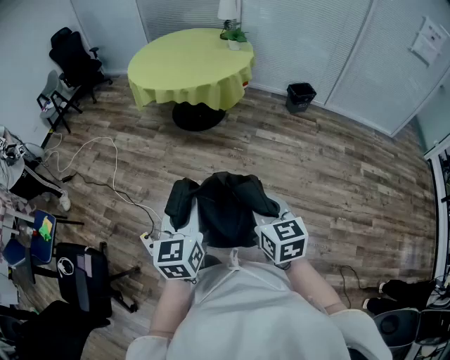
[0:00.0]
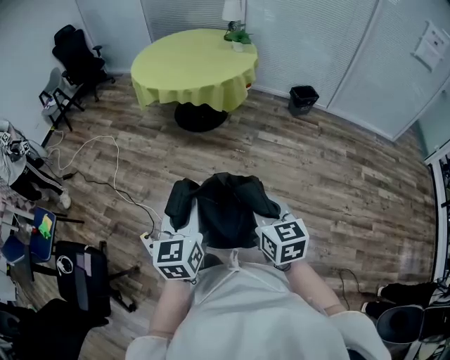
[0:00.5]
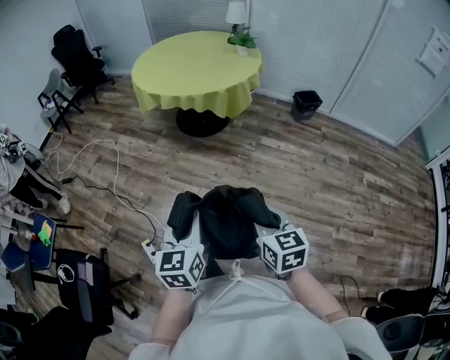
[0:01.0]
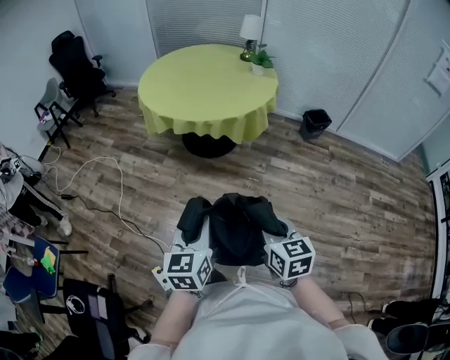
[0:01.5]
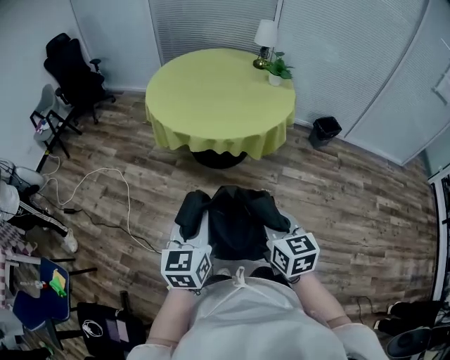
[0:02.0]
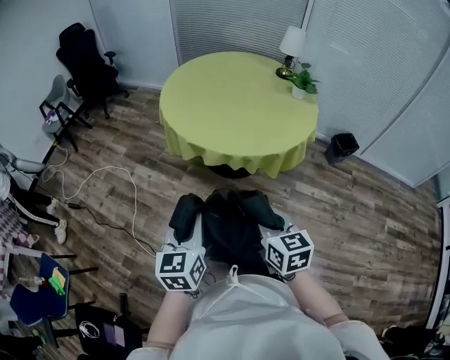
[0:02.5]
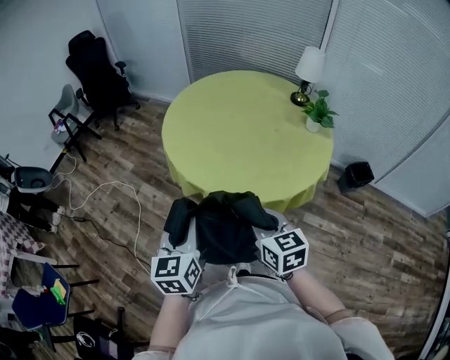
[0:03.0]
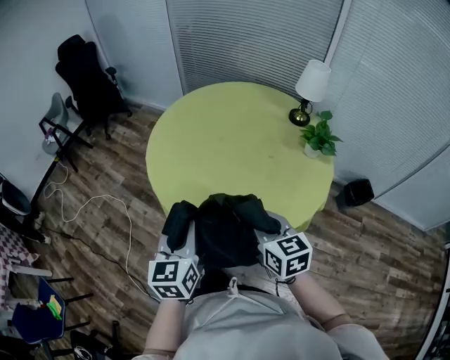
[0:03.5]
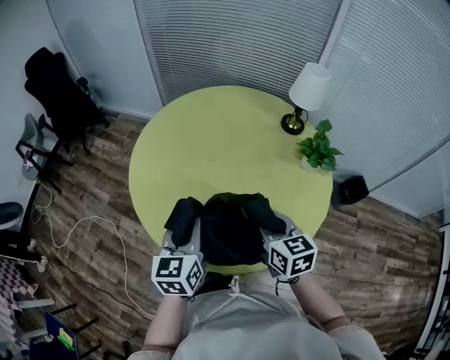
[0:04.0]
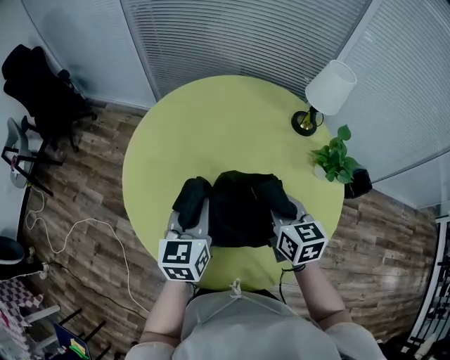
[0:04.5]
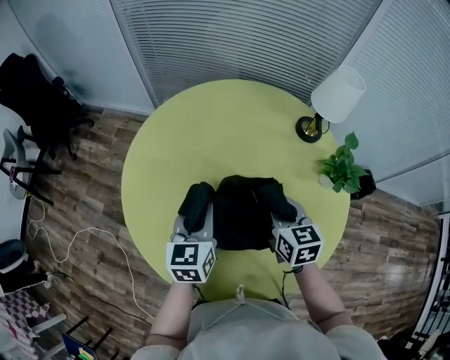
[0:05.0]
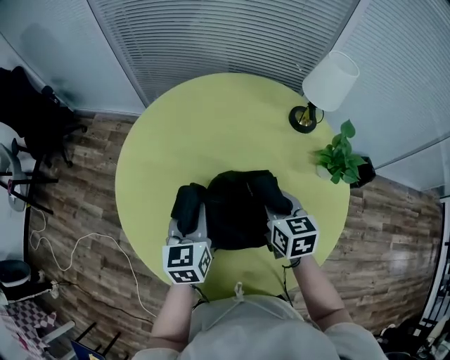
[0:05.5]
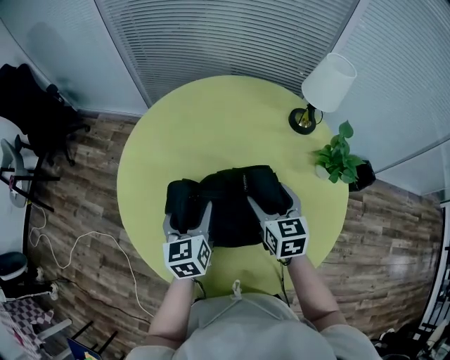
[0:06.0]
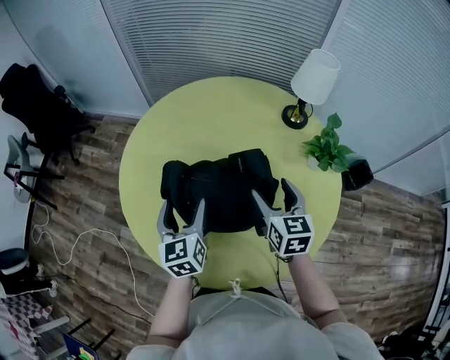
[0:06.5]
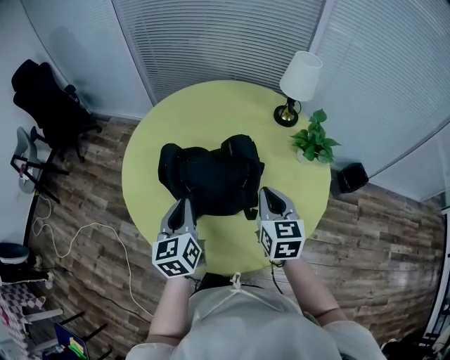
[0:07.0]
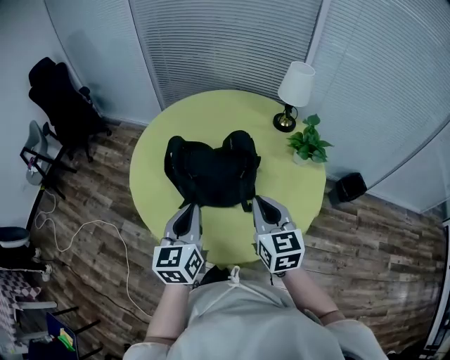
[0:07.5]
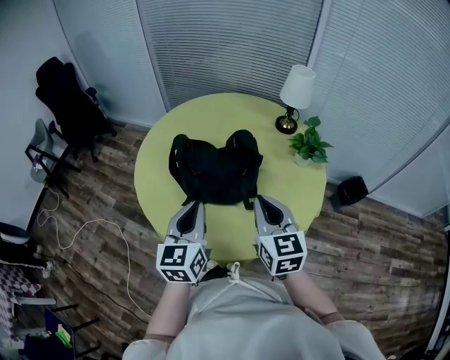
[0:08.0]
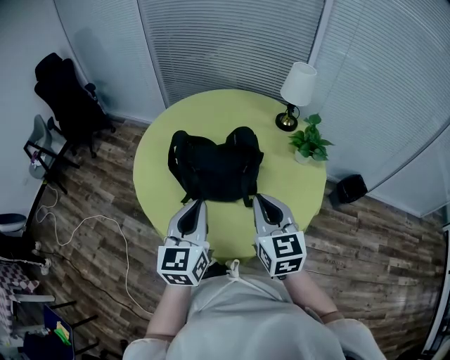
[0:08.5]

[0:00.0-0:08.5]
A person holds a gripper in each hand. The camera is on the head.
0:00.0 to 0:02.0: Both grippers are carried forward and to the left, about 40 cm.
0:02.0 to 0:04.0: The pair of grippers is taken forward, approximately 70 cm.
0:04.0 to 0:06.5: The left gripper shifts some 20 cm forward and downward, and opens its fingers, while the right gripper is displaced forward by approximately 15 cm, and opens up.
0:06.5 to 0:08.5: The two grippers go roughly 25 cm backward and upward. The right gripper closes its fingers. The left gripper closes.

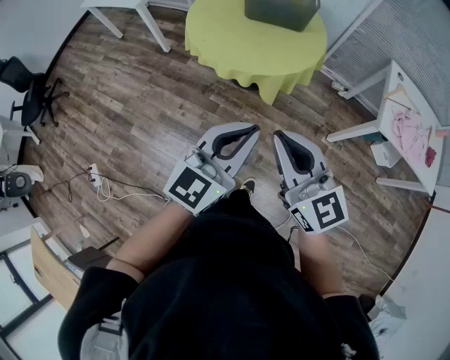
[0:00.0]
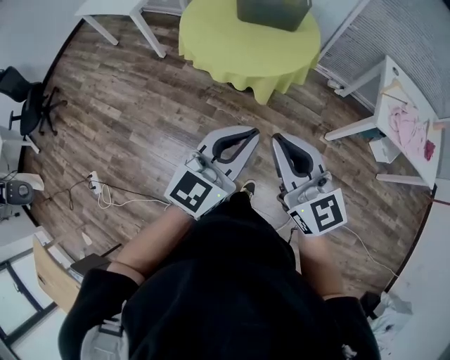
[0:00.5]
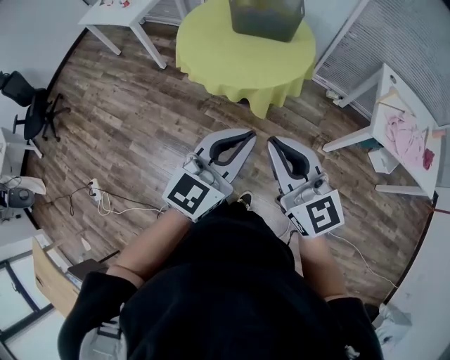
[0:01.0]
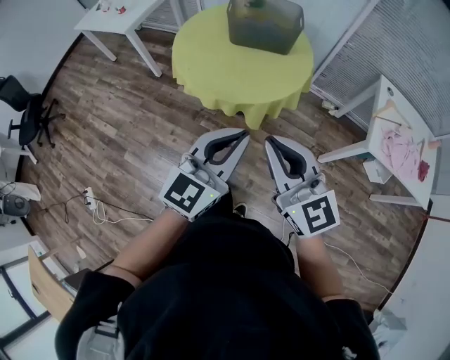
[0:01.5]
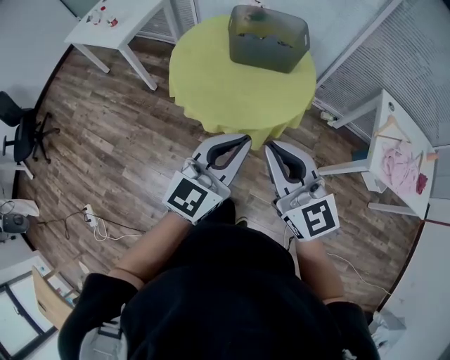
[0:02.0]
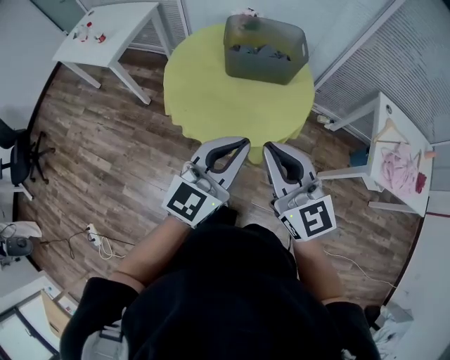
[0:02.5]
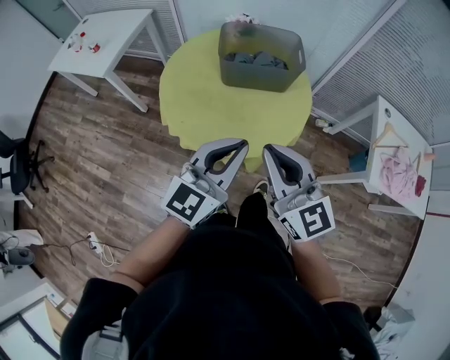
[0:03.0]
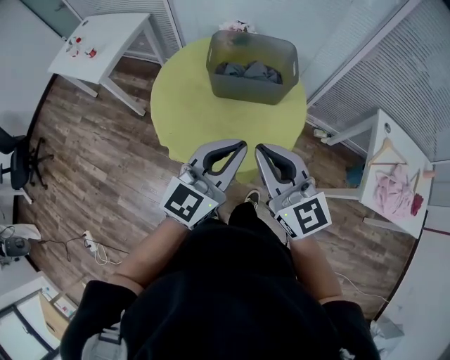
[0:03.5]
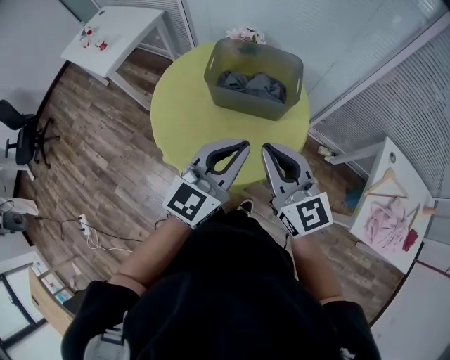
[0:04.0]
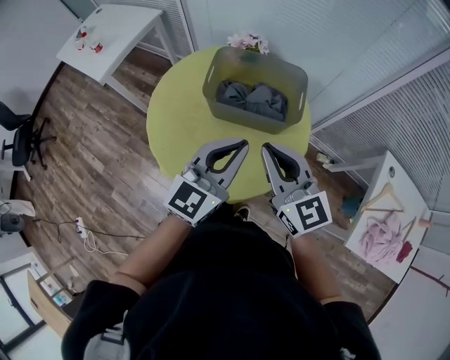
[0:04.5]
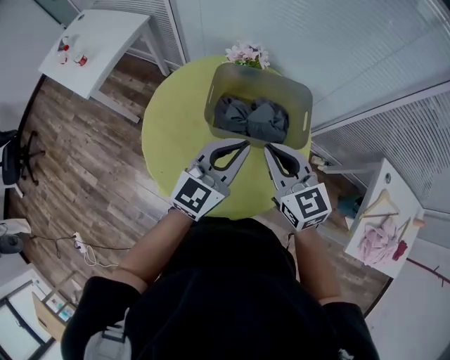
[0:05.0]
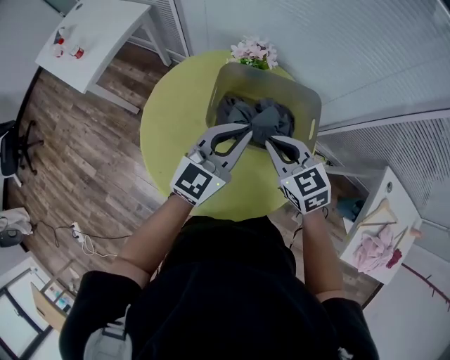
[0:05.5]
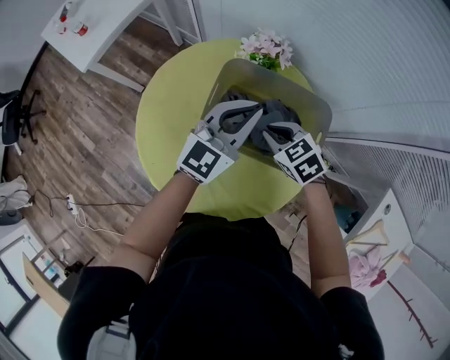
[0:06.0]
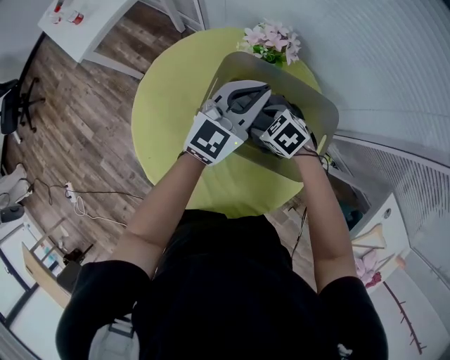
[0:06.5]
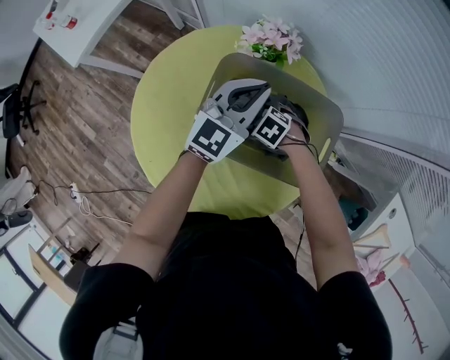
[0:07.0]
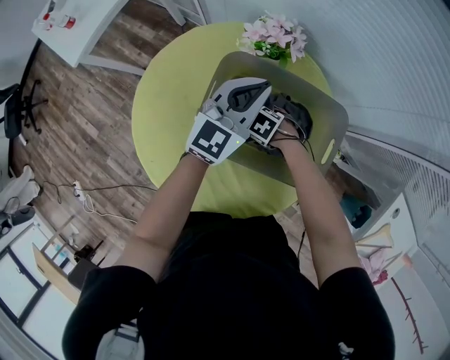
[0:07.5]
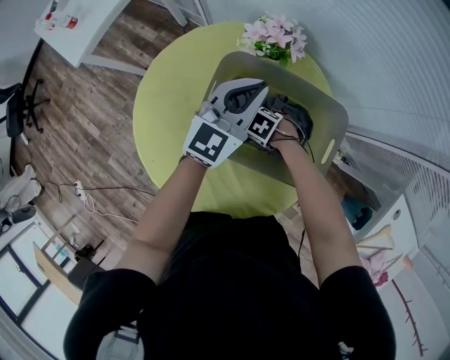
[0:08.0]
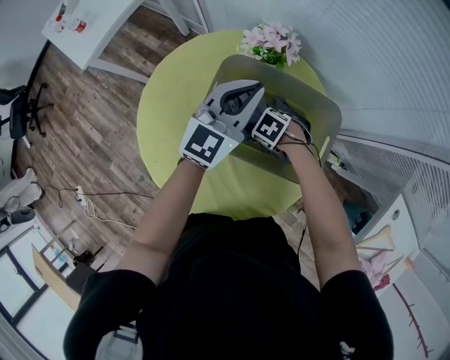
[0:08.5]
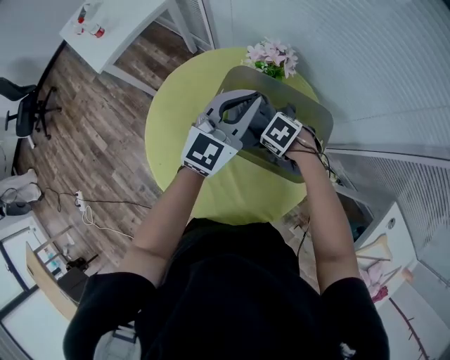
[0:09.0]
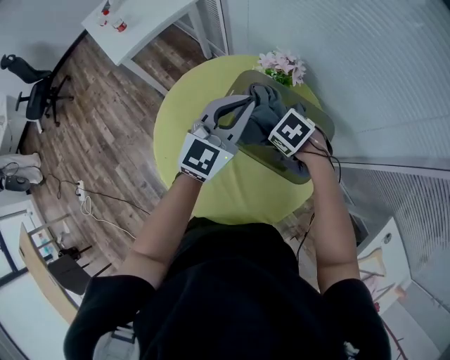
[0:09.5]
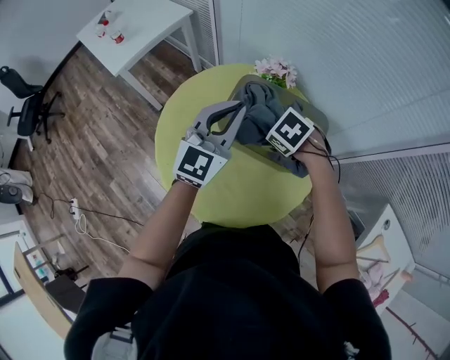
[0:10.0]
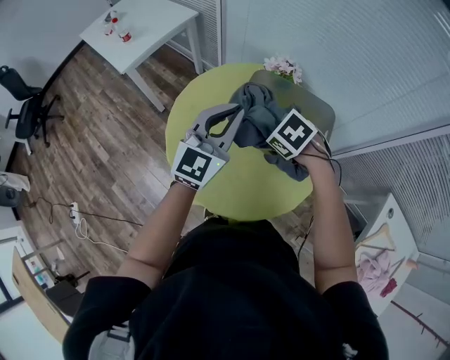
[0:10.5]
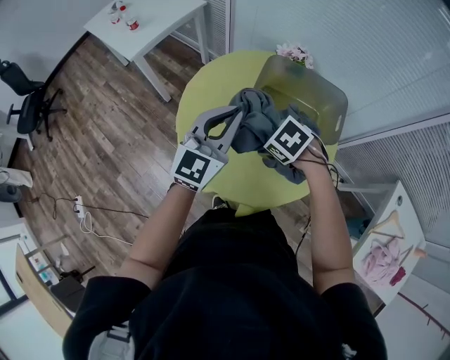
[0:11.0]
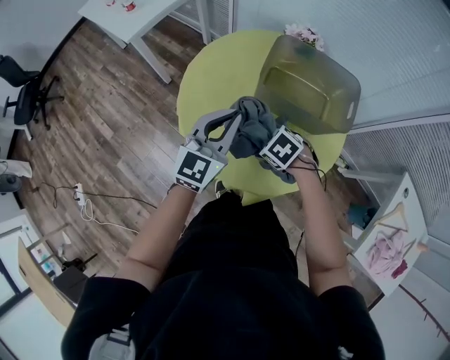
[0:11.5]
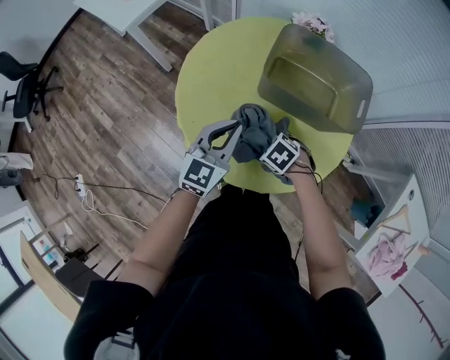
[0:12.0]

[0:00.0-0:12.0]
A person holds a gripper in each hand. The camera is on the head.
0:00.0 to 0:02.0: The two grippers go about 20 cm forward.
0:02.0 to 0:04.0: Both grippers travel together forward, roughly 25 cm.
0:04.0 to 0:06.0: The right gripper shifts approximately 40 cm forward and downward, and tips its fingers downward by some 50 degrees, while the left gripper shifts about 35 cm forward.
0:06.0 to 0:08.0: The right gripper goes some 25 cm downward, rotates approximately 40 degrees, and opens up, while the left gripper changes place by some 10 cm.
0:08.0 to 0:10.0: The right gripper shifts roughly 30 cm upward, while the left gripper is displaced upward by approximately 15 cm.
0:10.0 to 0:12.0: Both grippers move downward, to the left and backward, about 30 cm.

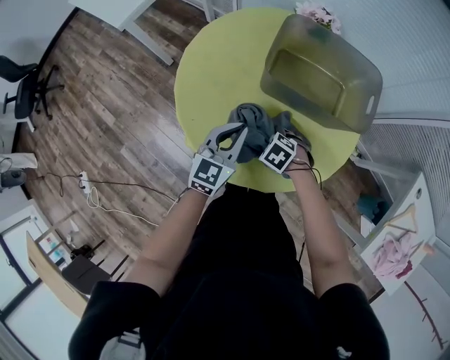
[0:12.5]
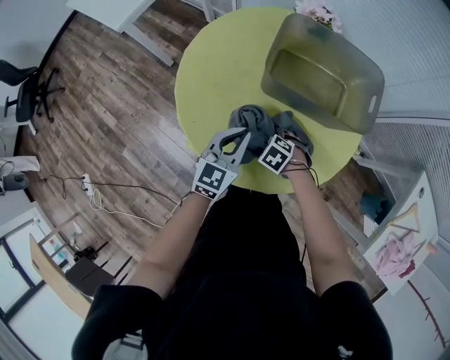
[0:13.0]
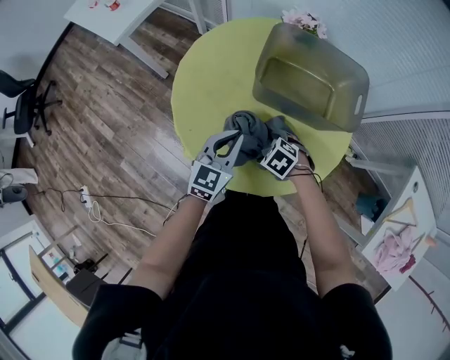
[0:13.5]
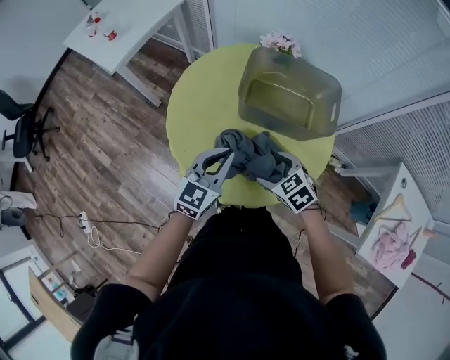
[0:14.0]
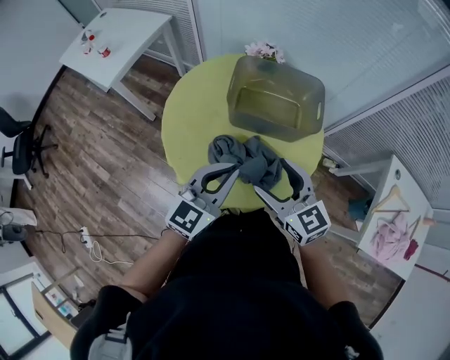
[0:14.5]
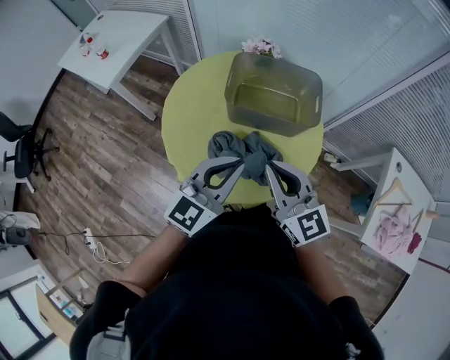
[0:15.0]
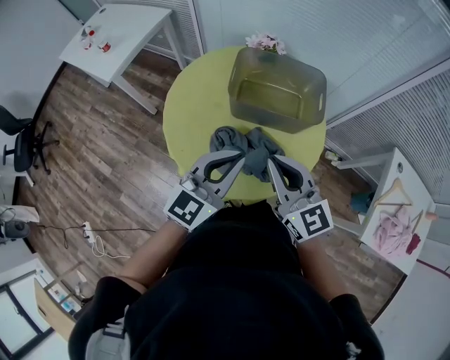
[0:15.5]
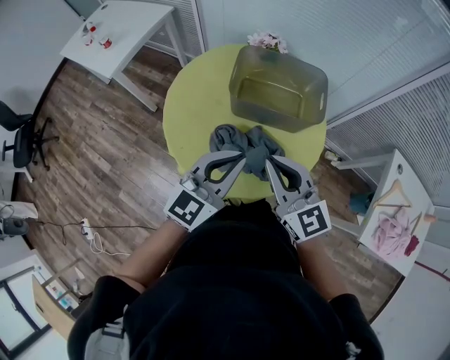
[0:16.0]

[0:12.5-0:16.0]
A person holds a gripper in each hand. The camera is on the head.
0:12.5 to 0:14.5: The right gripper heads upward, covering some 35 cm, and tips its fingers upward by approximately 60 degrees. The left gripper shifts roughly 20 cm upward.
0:14.5 to 0:16.0: The right gripper closes its fingers.

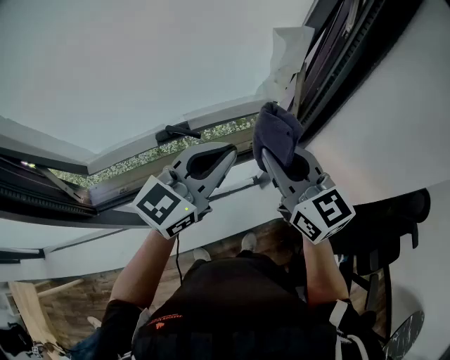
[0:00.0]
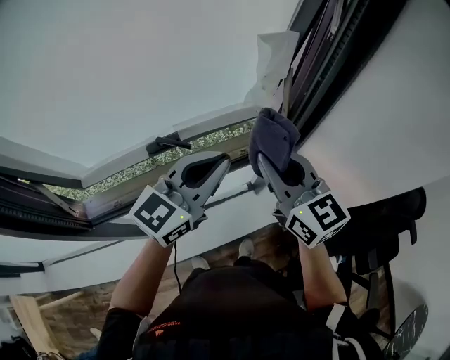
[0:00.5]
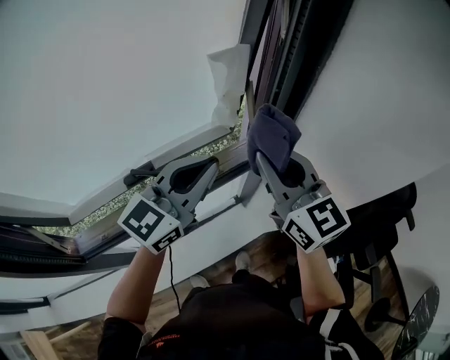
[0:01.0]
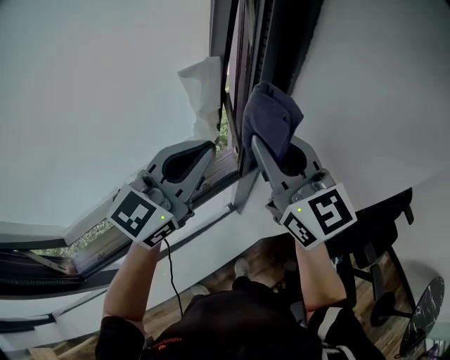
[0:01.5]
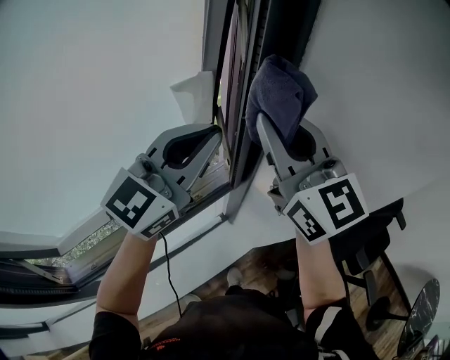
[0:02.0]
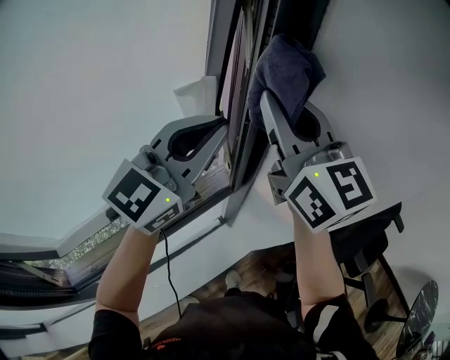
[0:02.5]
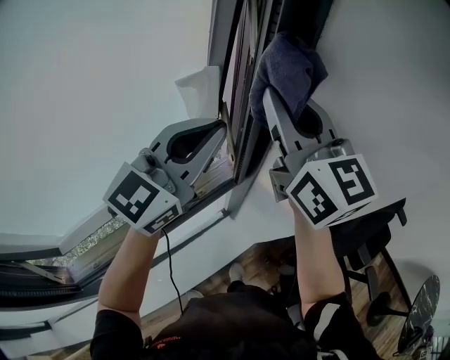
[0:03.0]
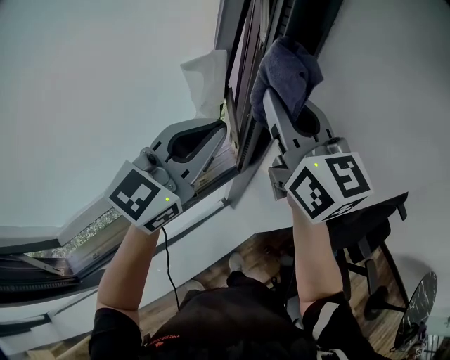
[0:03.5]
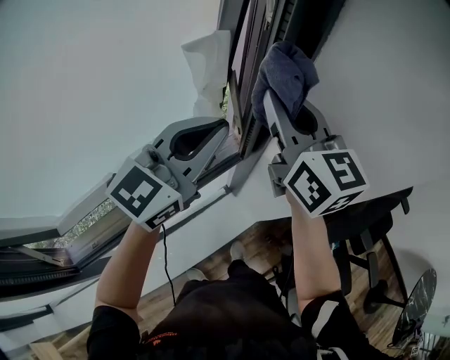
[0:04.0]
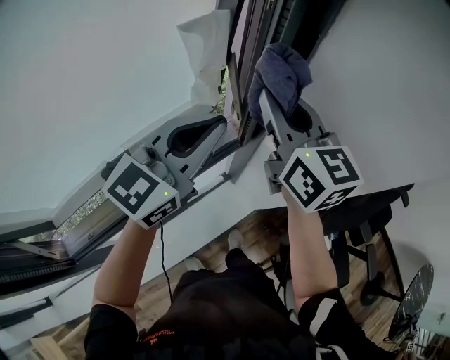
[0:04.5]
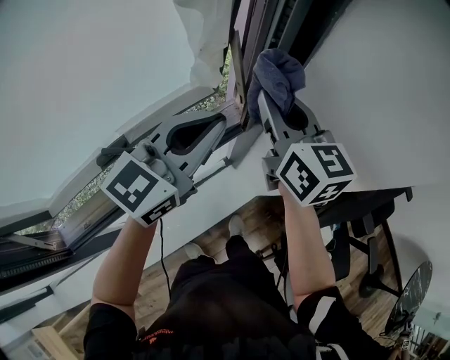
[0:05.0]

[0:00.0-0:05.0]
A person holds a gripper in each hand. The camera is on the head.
0:00.0 to 0:02.5: The right gripper shifts approximately 25 cm upward, forward and to the right, and turns by some 30 degrees, while the left gripper heads forward, upward and to the right, covering roughly 25 cm, and rotates about 20 degrees.
0:02.5 to 0:05.0: Both grippers move downward, about 20 cm. The right gripper rotates approximately 20 degrees.
